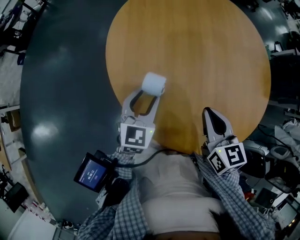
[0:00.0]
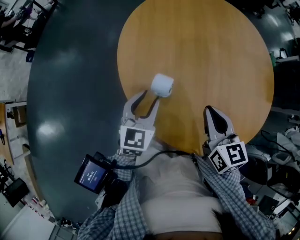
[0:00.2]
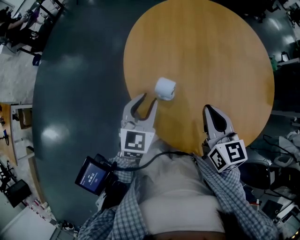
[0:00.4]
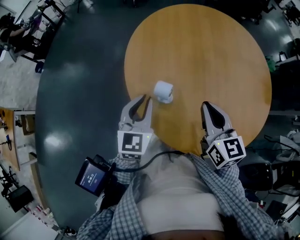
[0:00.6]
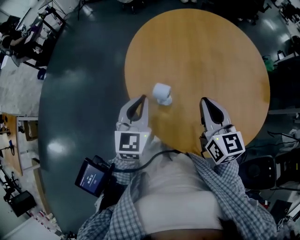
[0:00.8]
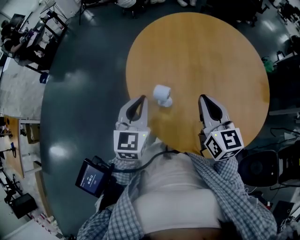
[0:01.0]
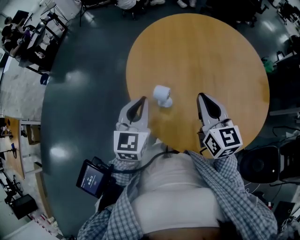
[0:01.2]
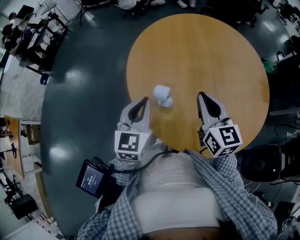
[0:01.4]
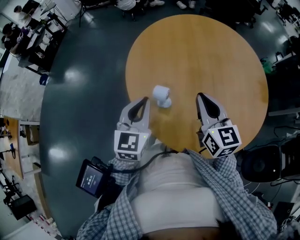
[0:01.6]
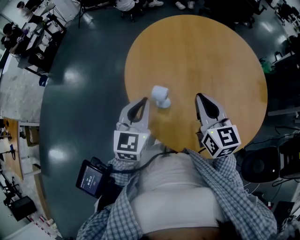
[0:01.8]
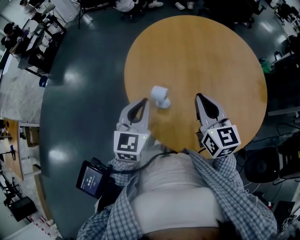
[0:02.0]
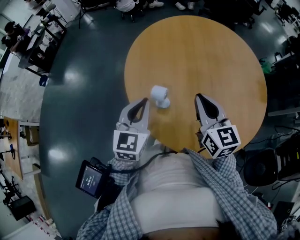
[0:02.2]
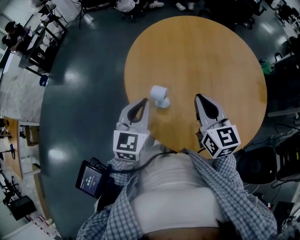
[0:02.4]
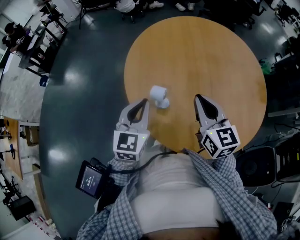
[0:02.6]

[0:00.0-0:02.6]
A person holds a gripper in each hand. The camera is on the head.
0:00.0 to 0:01.2: The left gripper is displaced upward and to the left by about 15 cm, and closes up, while the right gripper shifts approximately 5 cm upward.
0:01.2 to 0:02.6: The grippers make only small movements.

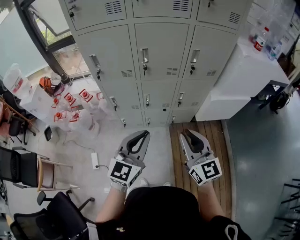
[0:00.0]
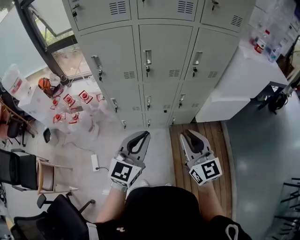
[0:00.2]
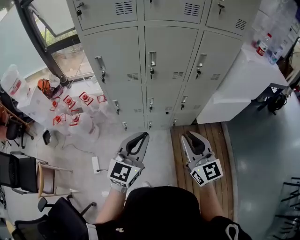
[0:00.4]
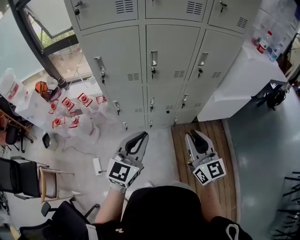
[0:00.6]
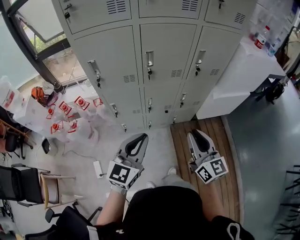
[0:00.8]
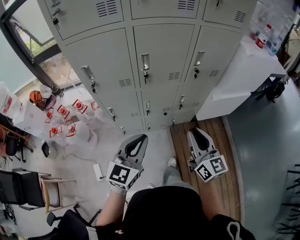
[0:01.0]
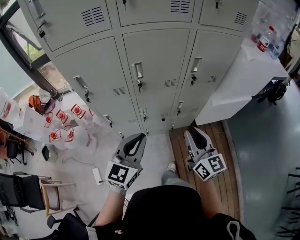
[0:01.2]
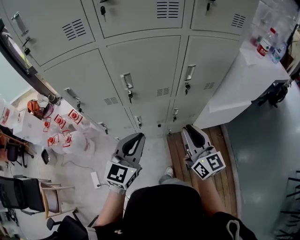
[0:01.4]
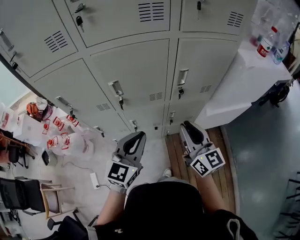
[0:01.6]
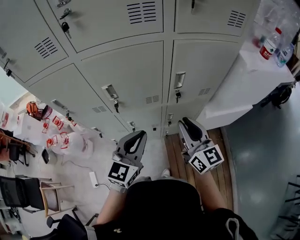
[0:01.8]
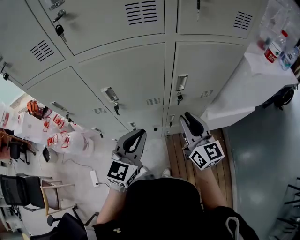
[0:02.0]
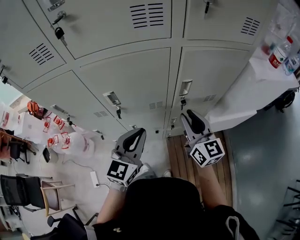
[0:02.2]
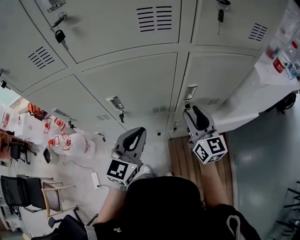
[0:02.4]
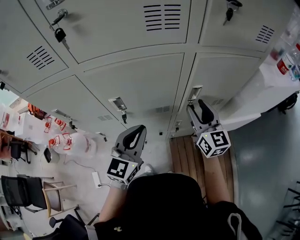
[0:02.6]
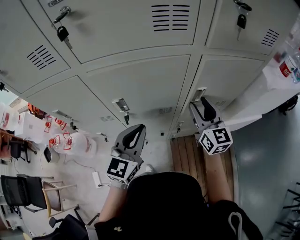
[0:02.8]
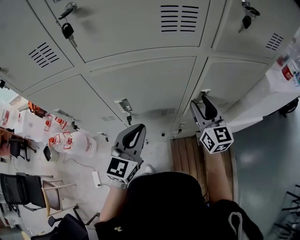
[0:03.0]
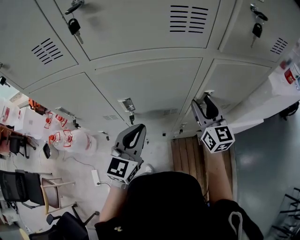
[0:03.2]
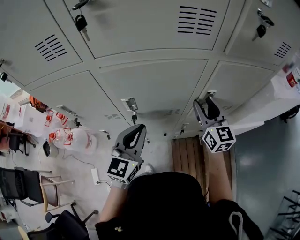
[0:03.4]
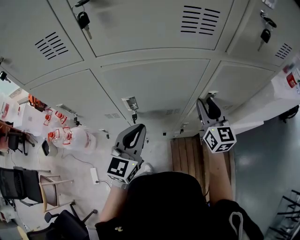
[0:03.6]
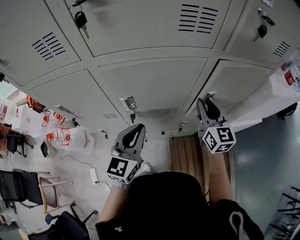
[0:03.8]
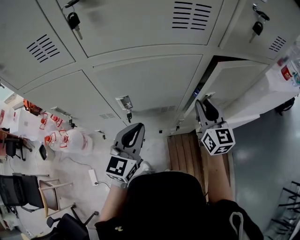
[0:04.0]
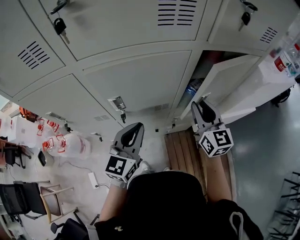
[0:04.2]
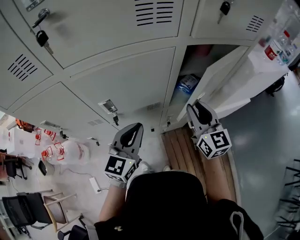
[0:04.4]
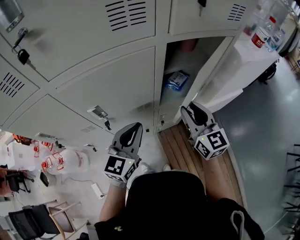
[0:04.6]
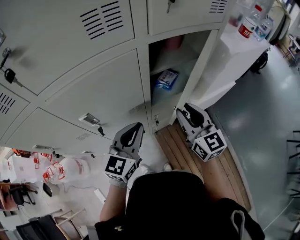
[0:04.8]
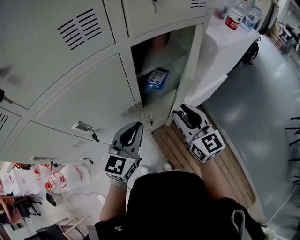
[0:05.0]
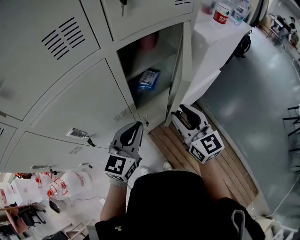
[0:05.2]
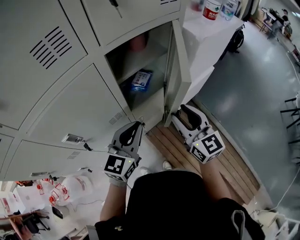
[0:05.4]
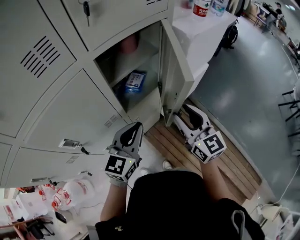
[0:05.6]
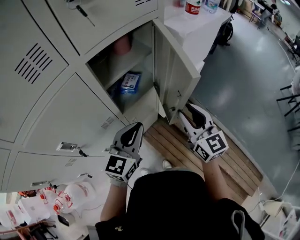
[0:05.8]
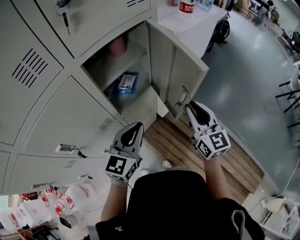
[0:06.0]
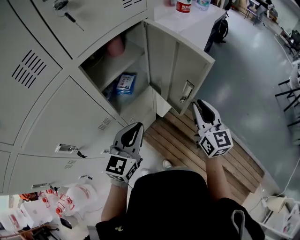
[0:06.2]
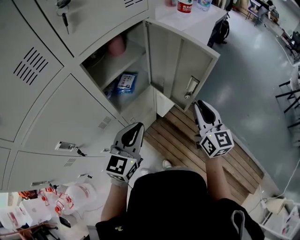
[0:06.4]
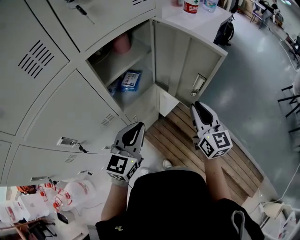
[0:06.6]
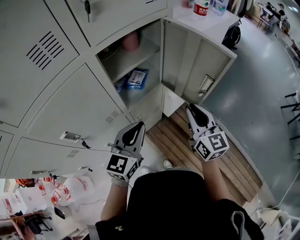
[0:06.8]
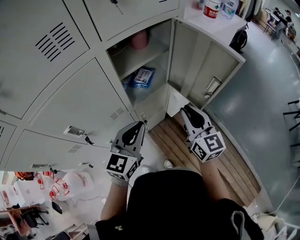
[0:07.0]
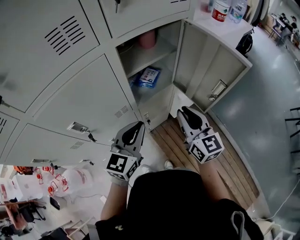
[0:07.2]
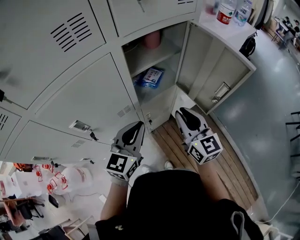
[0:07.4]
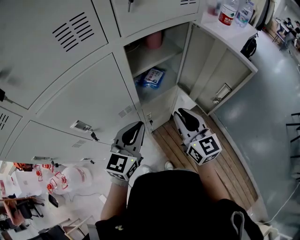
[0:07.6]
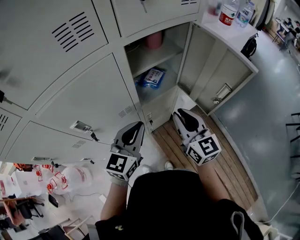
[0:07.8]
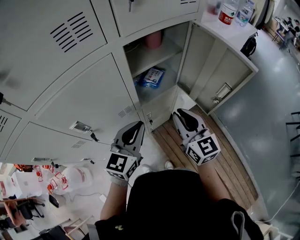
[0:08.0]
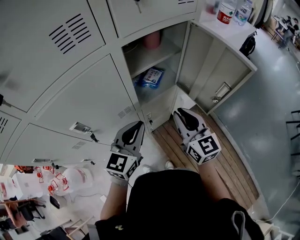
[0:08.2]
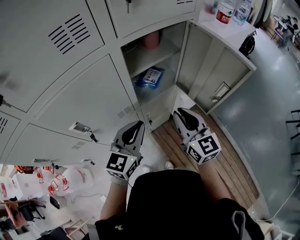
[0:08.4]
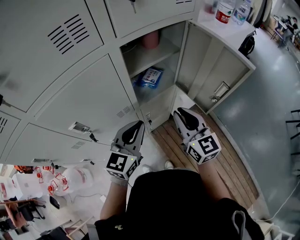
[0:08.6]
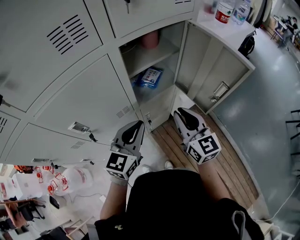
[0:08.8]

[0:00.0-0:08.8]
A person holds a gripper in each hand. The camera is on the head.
0:00.0 to 0:01.4: Both grippers move forward, roughly 20 cm.
0:01.4 to 0:03.0: The right gripper travels forward by approximately 25 cm, and opens, while the left gripper is displaced forward by approximately 15 cm.
0:03.0 to 0:04.4: The right gripper is displaced backward by about 5 cm.
0:04.4 to 0:05.8: The left gripper shifts by roughly 20 cm, and swivels roughly 30 degrees, while the right gripper ends up some 20 cm from where it was, and rotates roughly 20 degrees.
0:05.8 to 0:07.4: Both grippers travel together to the left, some 5 cm.
0:07.4 to 0:08.8: There are only small adjustments of the grippers.

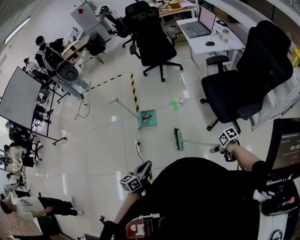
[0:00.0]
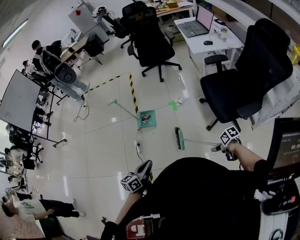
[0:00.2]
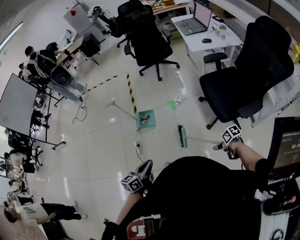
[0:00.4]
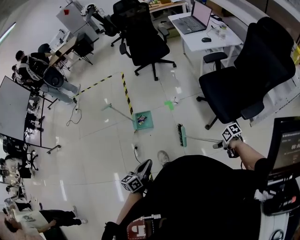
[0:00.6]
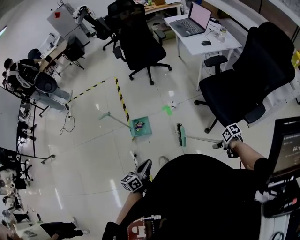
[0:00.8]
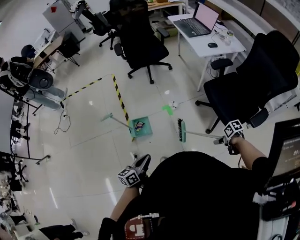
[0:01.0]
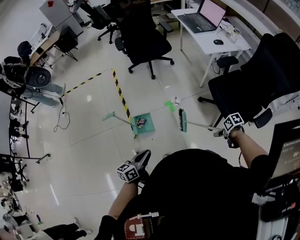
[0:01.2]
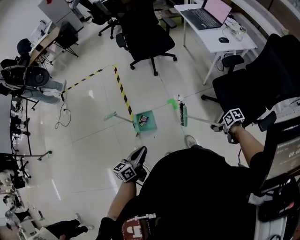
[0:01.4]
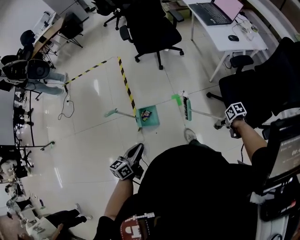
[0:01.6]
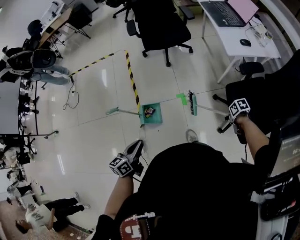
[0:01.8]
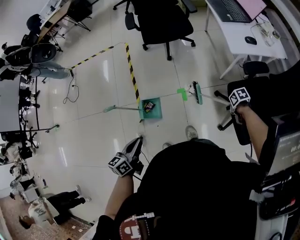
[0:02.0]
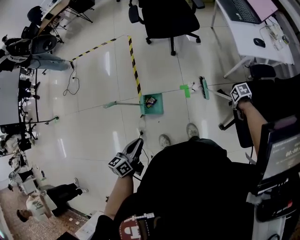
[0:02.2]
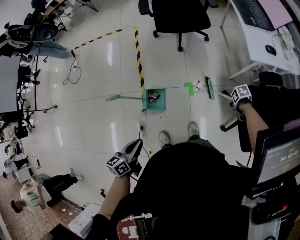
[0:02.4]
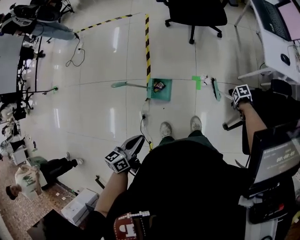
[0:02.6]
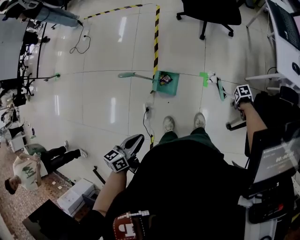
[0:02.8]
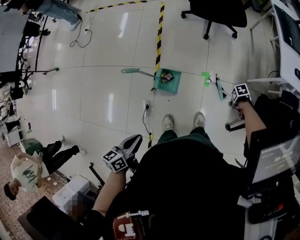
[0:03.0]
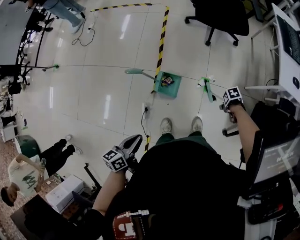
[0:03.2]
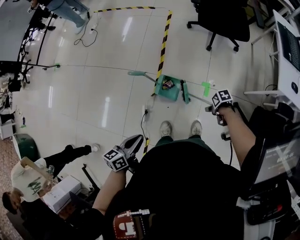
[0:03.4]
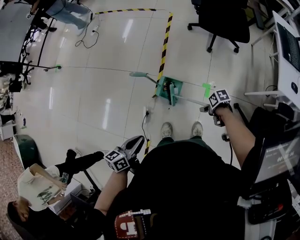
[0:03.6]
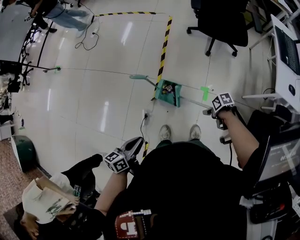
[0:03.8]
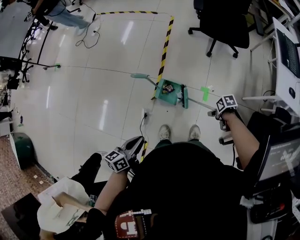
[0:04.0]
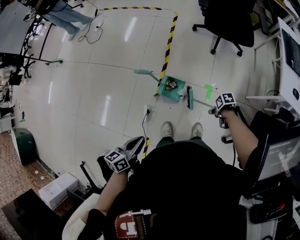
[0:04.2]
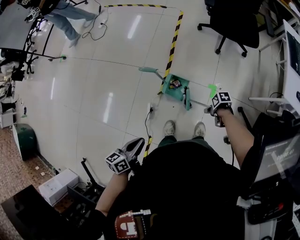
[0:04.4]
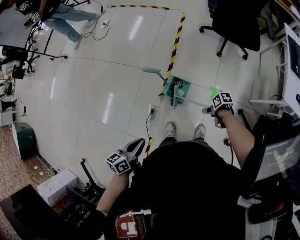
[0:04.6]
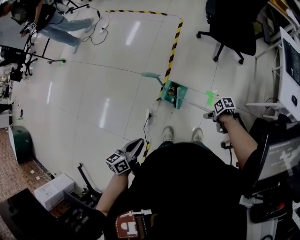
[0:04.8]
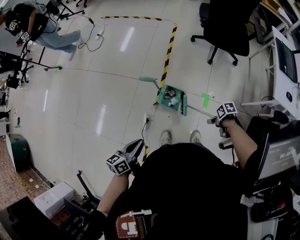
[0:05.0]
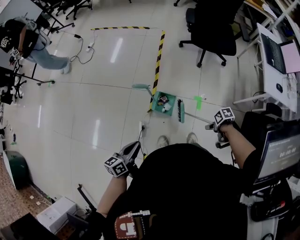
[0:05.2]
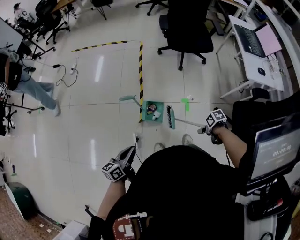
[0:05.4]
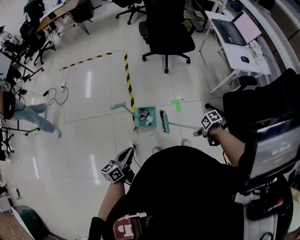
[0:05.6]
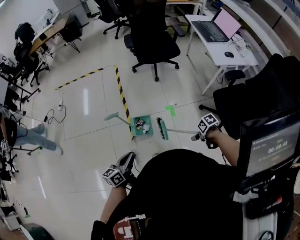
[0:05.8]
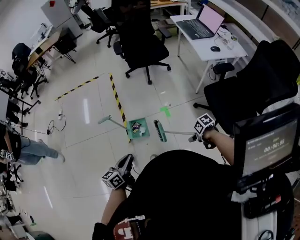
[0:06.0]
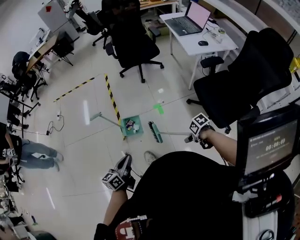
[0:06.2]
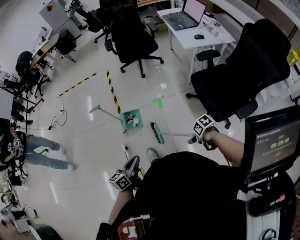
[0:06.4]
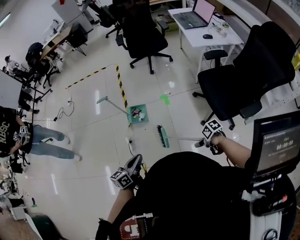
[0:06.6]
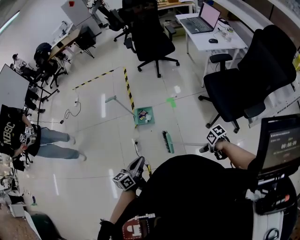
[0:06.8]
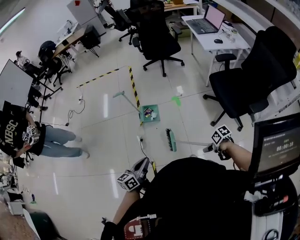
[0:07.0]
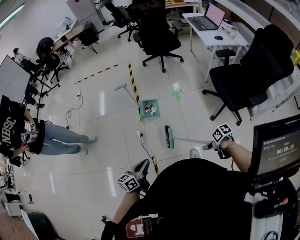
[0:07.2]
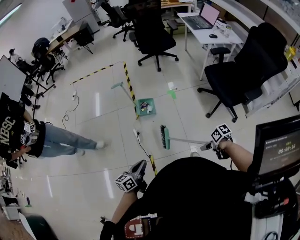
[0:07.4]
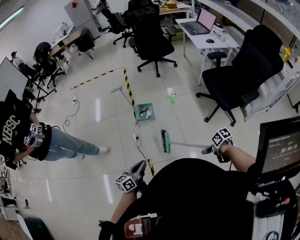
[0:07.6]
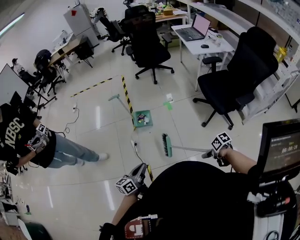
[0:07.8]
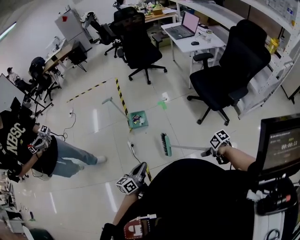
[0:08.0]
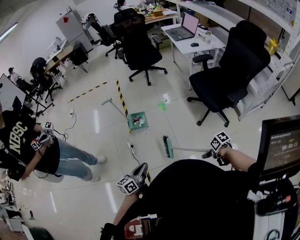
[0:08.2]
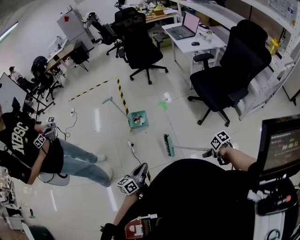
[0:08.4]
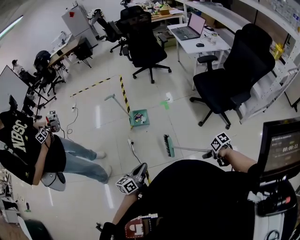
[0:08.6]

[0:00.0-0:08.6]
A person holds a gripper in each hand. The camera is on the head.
0:00.0 to 0:01.4: The left gripper shifts by about 40 cm.
0:01.4 to 0:02.8: The left gripper swivels about 20 degrees.
0:02.8 to 0:04.4: The left gripper shifts by roughly 10 cm.
0:04.4 to 0:05.8: The left gripper swivels some 30 degrees.
0:05.8 to 0:07.2: The left gripper moves approximately 40 cm.
0:07.2 to 0:08.6: The left gripper ends up roughly 10 cm from where it was.

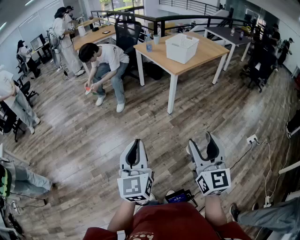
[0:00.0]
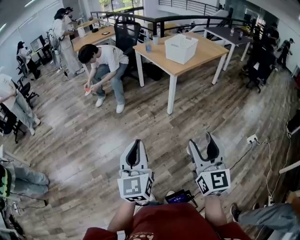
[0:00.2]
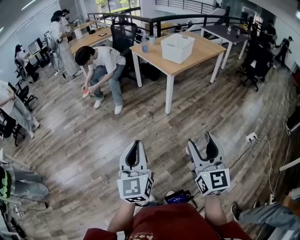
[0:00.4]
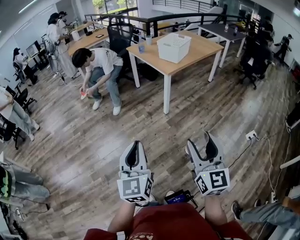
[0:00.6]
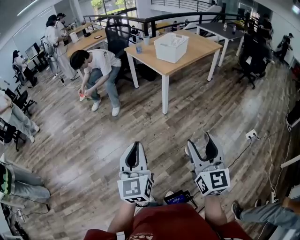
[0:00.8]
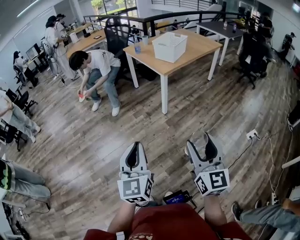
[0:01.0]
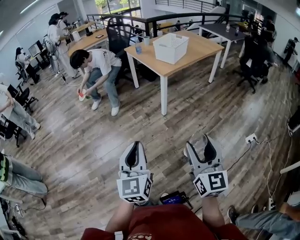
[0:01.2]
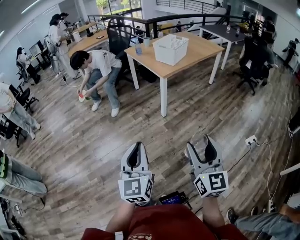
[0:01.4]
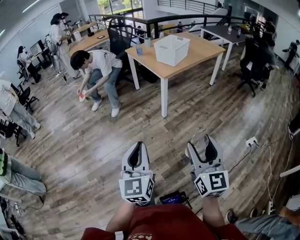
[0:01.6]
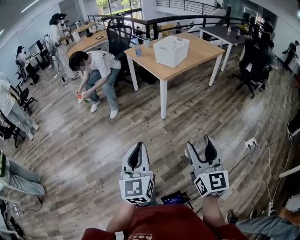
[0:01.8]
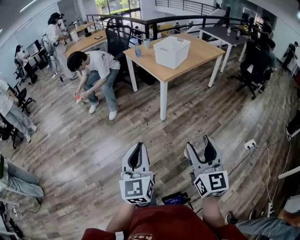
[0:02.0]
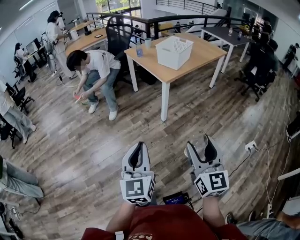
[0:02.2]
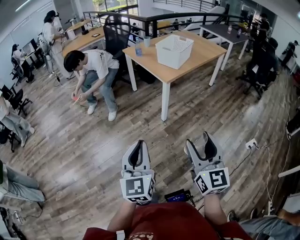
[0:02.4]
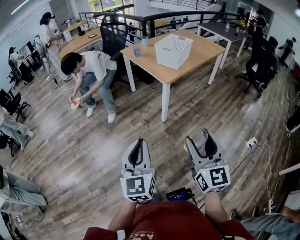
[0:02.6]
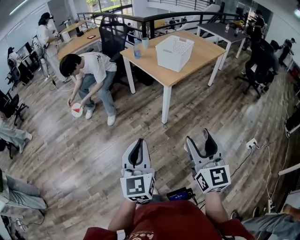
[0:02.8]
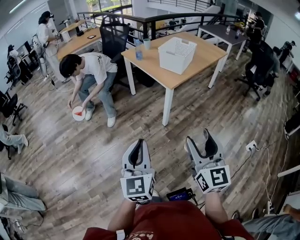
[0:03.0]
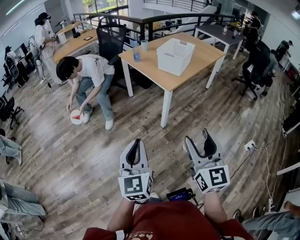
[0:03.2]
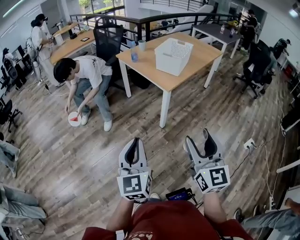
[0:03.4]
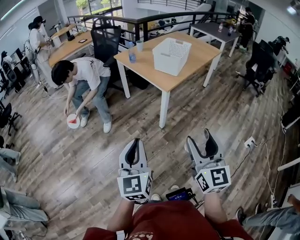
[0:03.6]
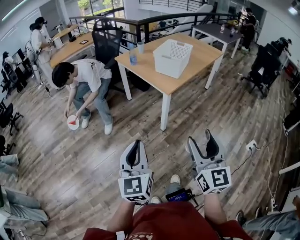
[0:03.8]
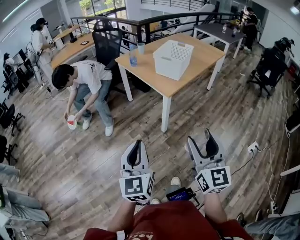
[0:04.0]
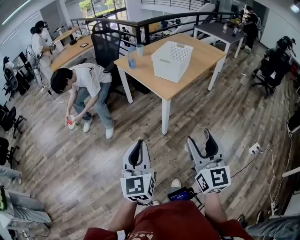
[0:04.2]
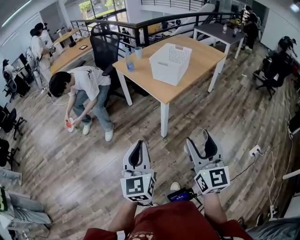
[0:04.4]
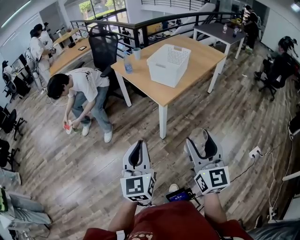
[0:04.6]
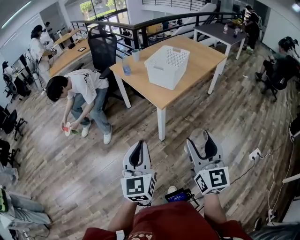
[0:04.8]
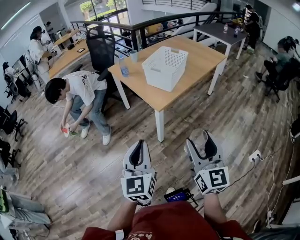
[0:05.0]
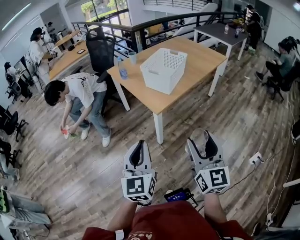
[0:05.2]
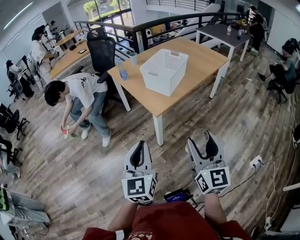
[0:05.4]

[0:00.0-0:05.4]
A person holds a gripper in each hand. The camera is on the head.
0:00.0 to 0:01.4: Both grippers move to the right, about 10 cm.
0:01.4 to 0:02.8: The left gripper heads forward, covering about 20 cm, while the right gripper shifts roughly 20 cm forward and to the left.
0:02.8 to 0:04.0: Both grippers move forward, about 10 cm.
0:04.0 to 0:05.4: The two grippers go about 20 cm to the right and forward.
